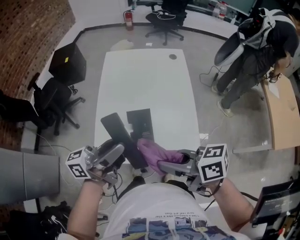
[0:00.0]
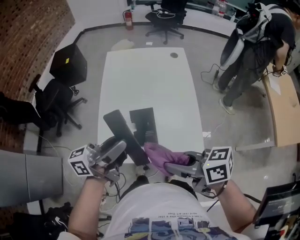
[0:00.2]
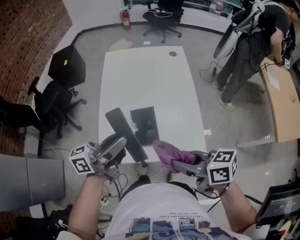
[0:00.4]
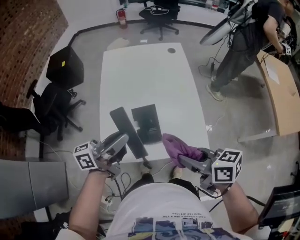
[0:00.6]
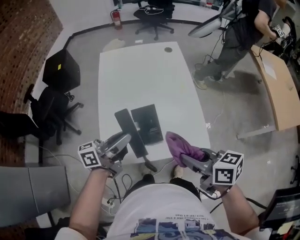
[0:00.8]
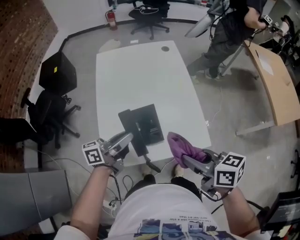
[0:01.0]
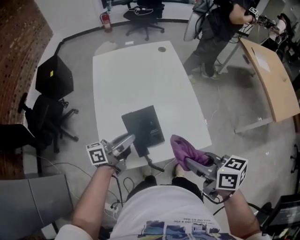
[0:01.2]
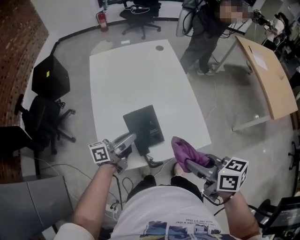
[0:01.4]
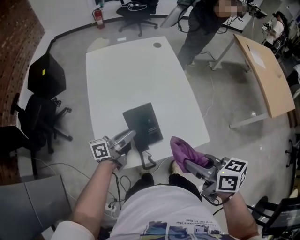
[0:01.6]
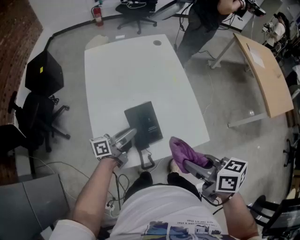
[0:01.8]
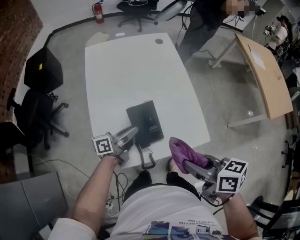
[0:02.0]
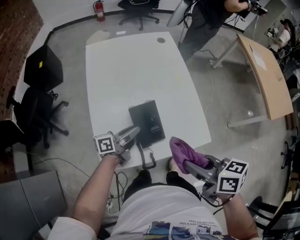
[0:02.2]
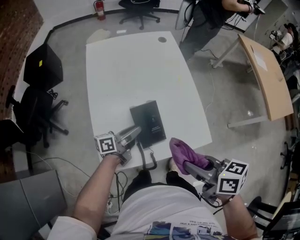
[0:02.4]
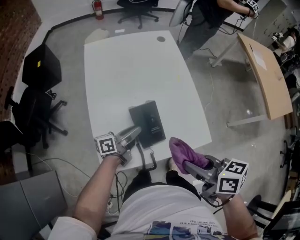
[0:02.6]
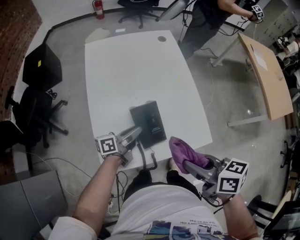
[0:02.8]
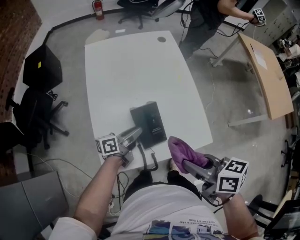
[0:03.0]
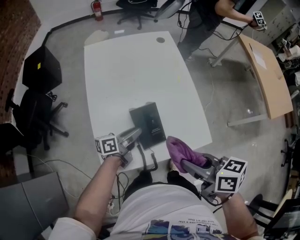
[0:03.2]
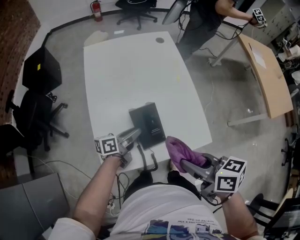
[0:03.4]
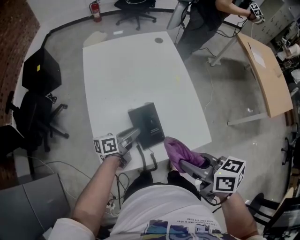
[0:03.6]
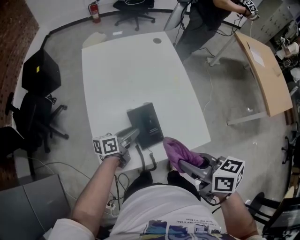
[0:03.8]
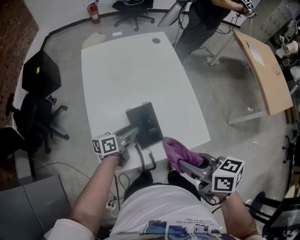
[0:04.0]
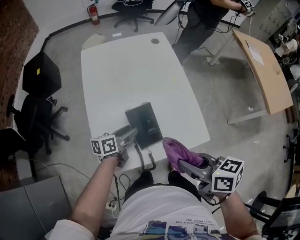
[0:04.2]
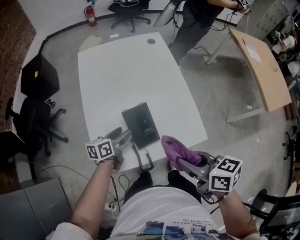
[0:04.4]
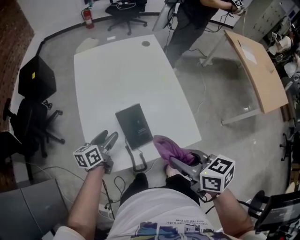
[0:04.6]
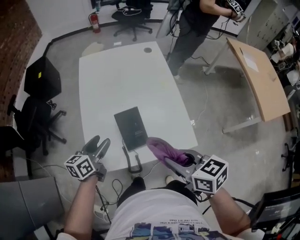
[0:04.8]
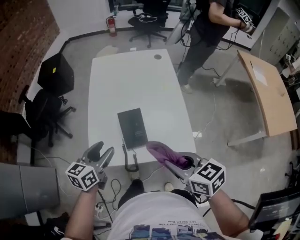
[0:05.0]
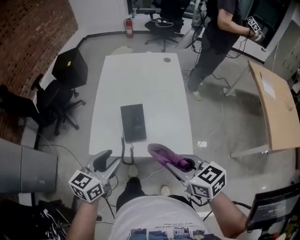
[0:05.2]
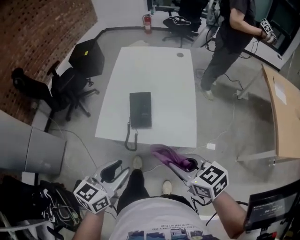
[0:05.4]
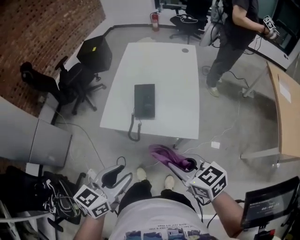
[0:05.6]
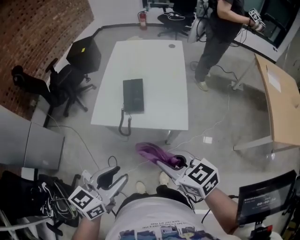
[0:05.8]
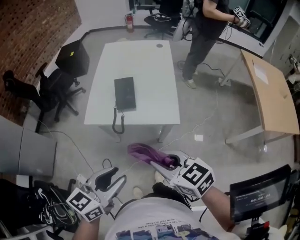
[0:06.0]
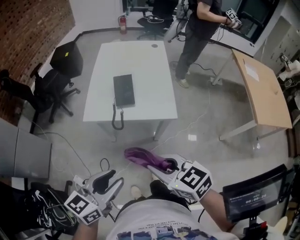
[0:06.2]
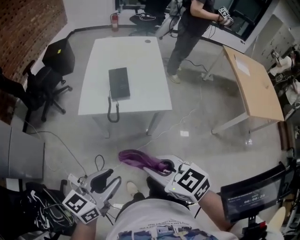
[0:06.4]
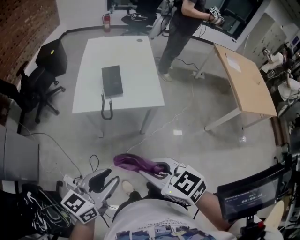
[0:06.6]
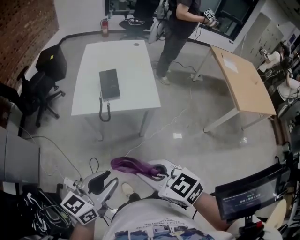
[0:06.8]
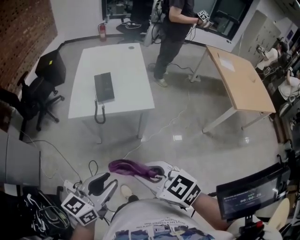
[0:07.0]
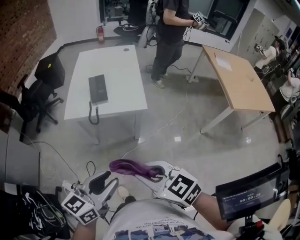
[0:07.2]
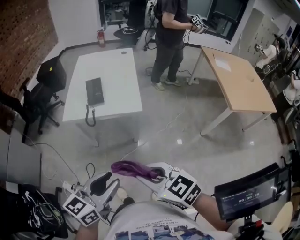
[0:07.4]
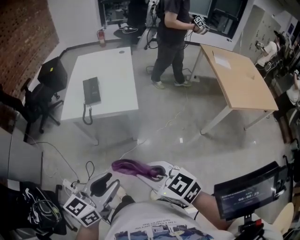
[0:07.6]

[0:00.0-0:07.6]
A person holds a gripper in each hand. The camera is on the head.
0:00.0 to 0:01.6: The left gripper shifts about 20 cm downward, and rotates about 30 degrees. Meanwhile the right gripper ends up some 5 cm from where it was, and swivels about 40 degrees.
0:01.6 to 0:03.0: The left gripper travels downward by some 5 cm.
0:03.0 to 0:04.6: The left gripper travels to the left by some 5 cm, rotates about 30 degrees, and opens up.
0:04.6 to 0:06.0: The left gripper is displaced backward and upward by roughly 50 cm, swivels approximately 20 degrees, and closes, while the right gripper is displaced backward by approximately 20 cm, and swivels approximately 40 degrees.
0:06.0 to 0:07.6: The two grippers go roughly 20 cm backward and to the right.

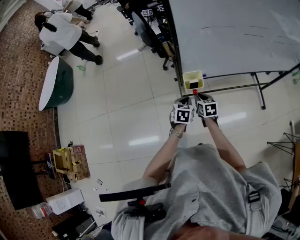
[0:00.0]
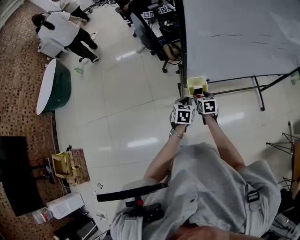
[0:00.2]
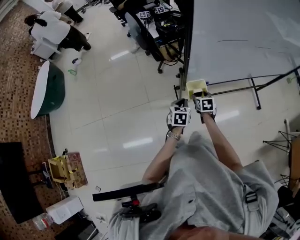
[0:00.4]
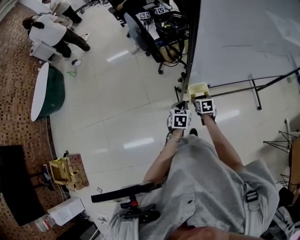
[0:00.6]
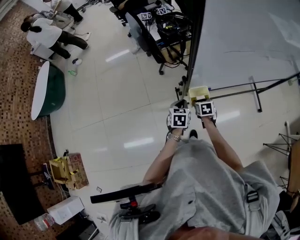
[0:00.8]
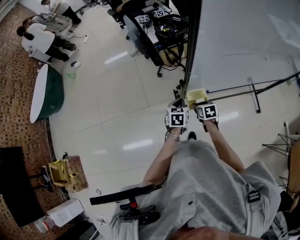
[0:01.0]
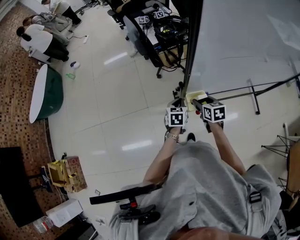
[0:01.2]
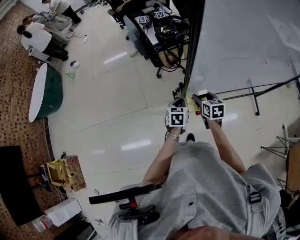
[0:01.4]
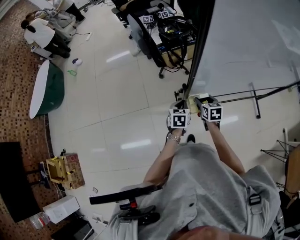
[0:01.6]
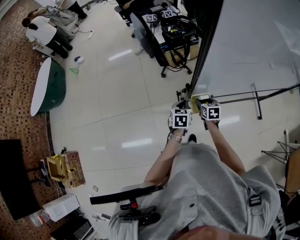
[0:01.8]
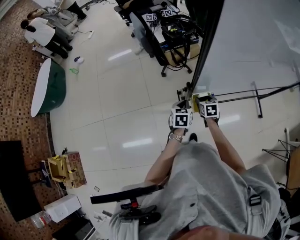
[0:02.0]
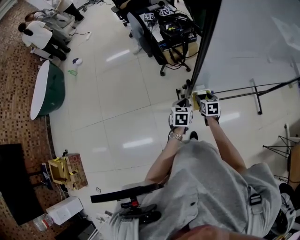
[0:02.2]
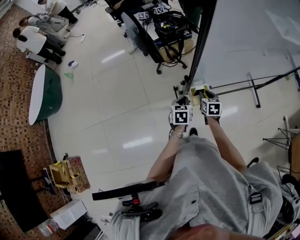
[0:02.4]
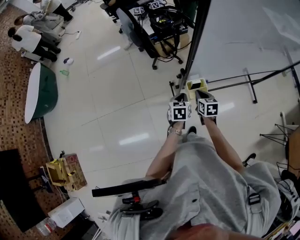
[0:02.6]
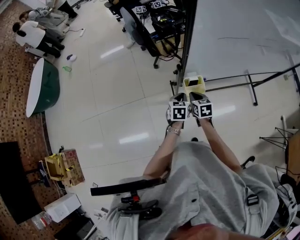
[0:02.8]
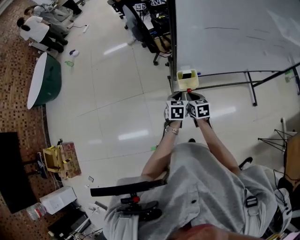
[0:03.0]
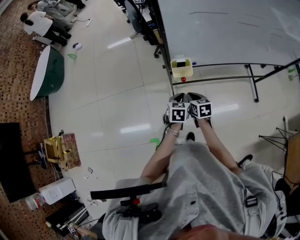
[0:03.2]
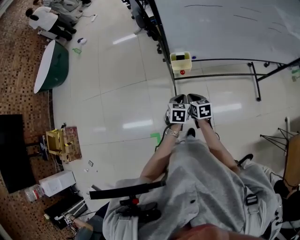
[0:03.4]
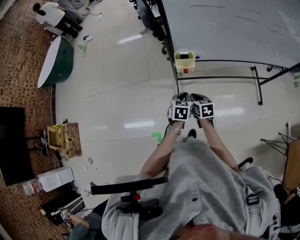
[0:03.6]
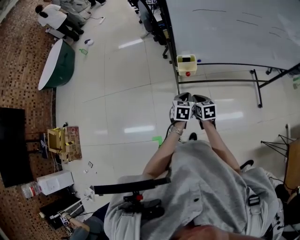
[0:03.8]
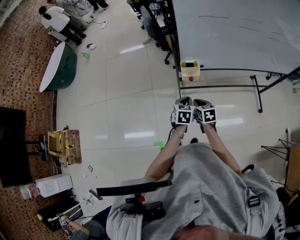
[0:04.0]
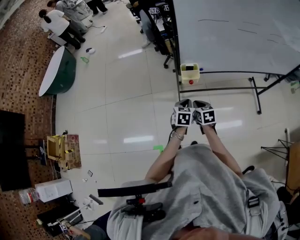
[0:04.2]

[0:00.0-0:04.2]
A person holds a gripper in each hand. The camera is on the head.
0:00.0 to 0:01.4: The right gripper goes some 15 cm forward and upward, and opens. Meanwhile the left gripper moves forward and to the left, approximately 15 cm.
0:01.4 to 0:02.8: The left gripper goes some 5 cm backward; the right gripper is displaced backward and downward by approximately 10 cm, and closes.
0:02.8 to 0:04.2: Both grippers travel together backward, about 20 cm.

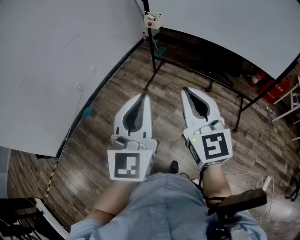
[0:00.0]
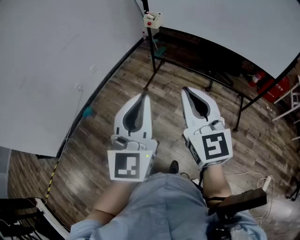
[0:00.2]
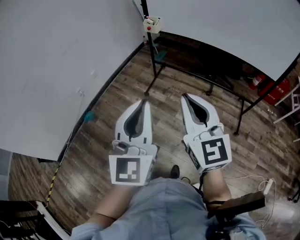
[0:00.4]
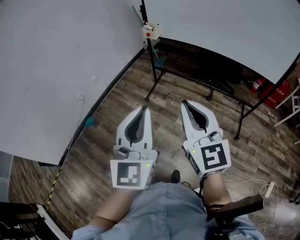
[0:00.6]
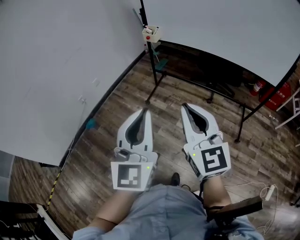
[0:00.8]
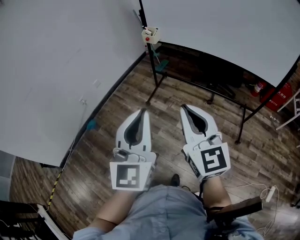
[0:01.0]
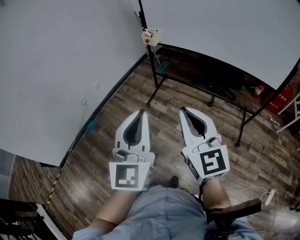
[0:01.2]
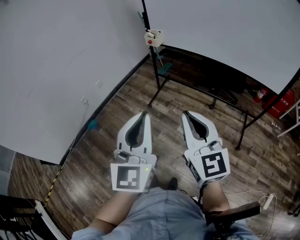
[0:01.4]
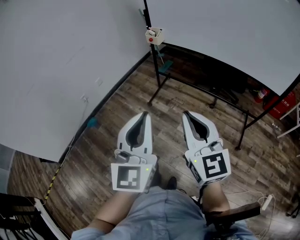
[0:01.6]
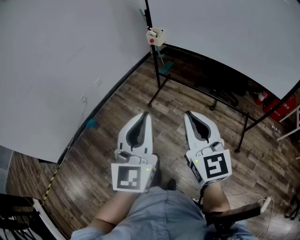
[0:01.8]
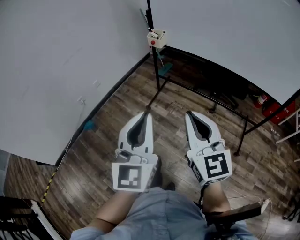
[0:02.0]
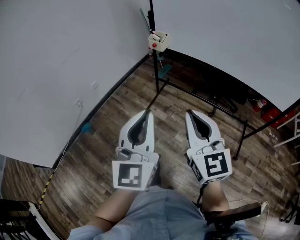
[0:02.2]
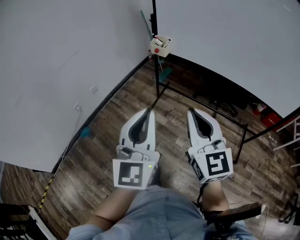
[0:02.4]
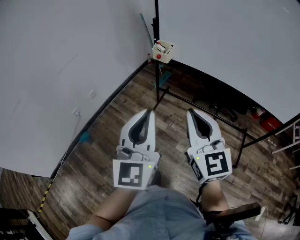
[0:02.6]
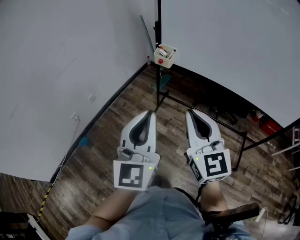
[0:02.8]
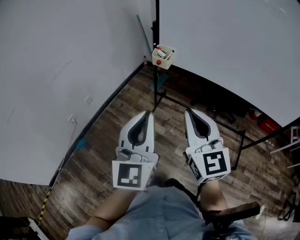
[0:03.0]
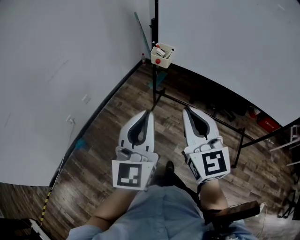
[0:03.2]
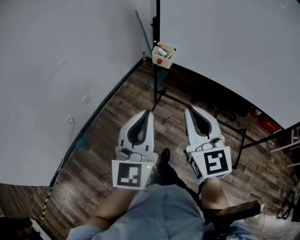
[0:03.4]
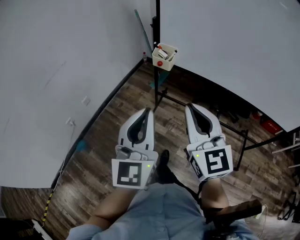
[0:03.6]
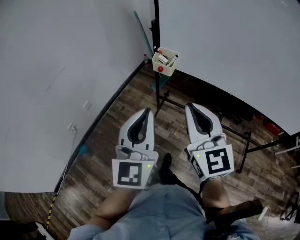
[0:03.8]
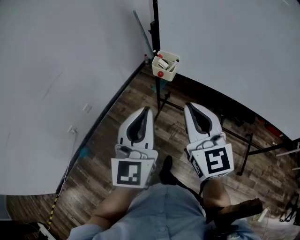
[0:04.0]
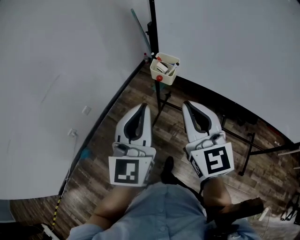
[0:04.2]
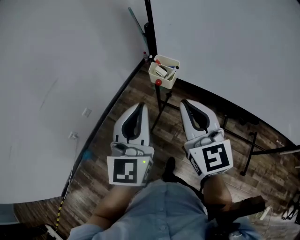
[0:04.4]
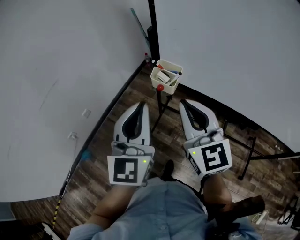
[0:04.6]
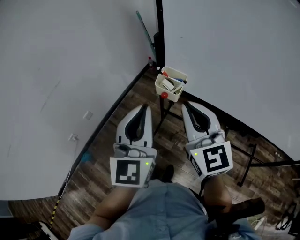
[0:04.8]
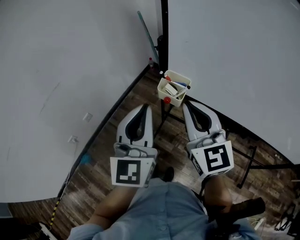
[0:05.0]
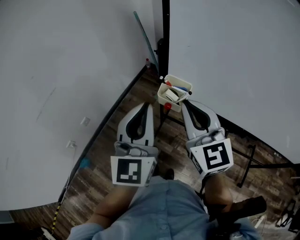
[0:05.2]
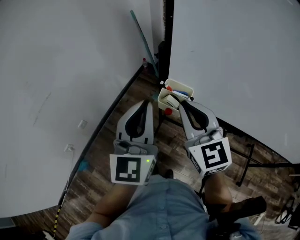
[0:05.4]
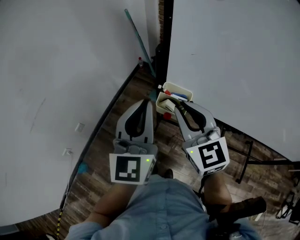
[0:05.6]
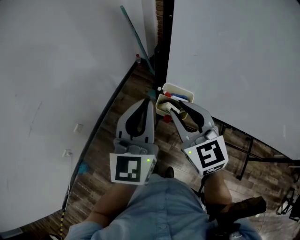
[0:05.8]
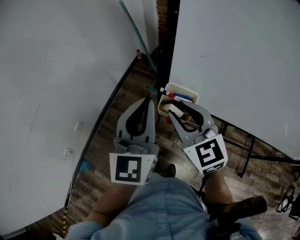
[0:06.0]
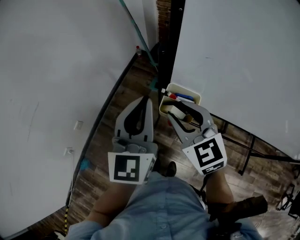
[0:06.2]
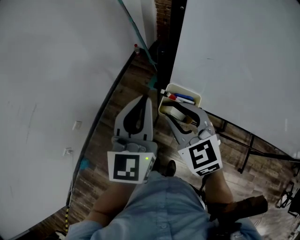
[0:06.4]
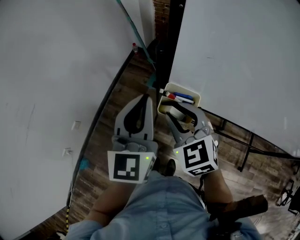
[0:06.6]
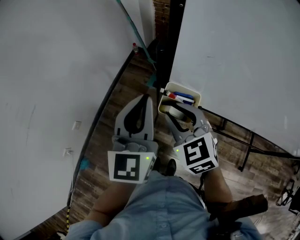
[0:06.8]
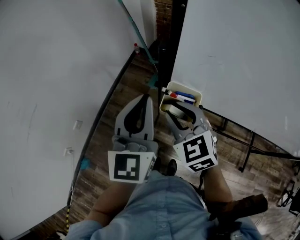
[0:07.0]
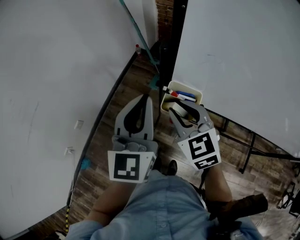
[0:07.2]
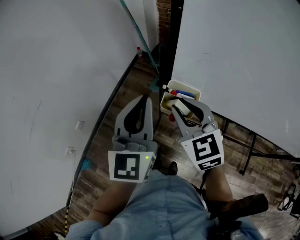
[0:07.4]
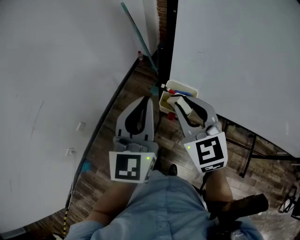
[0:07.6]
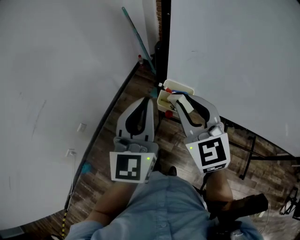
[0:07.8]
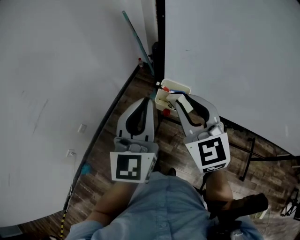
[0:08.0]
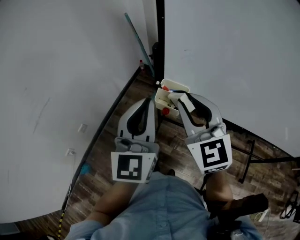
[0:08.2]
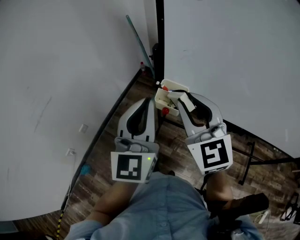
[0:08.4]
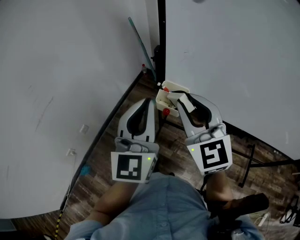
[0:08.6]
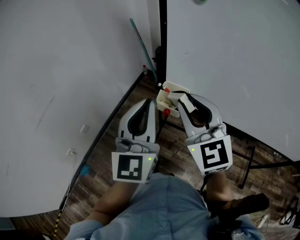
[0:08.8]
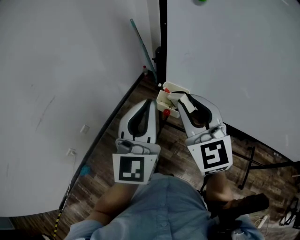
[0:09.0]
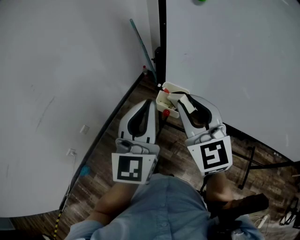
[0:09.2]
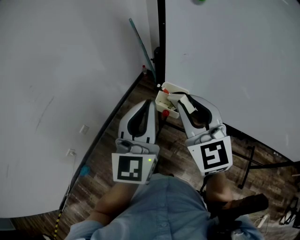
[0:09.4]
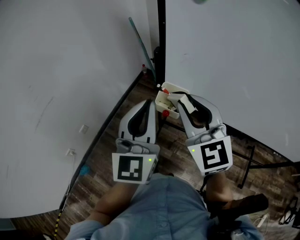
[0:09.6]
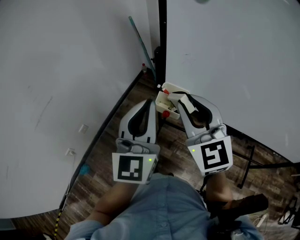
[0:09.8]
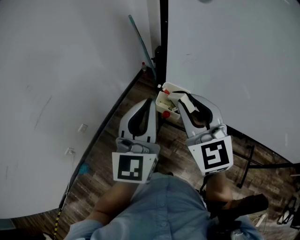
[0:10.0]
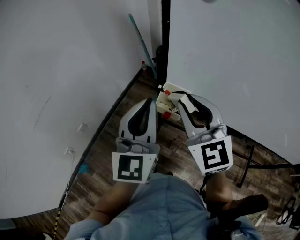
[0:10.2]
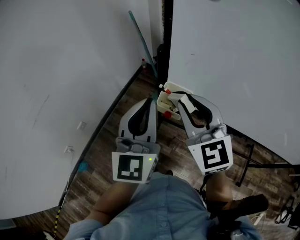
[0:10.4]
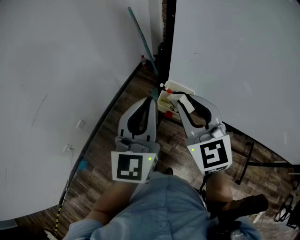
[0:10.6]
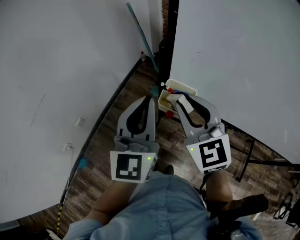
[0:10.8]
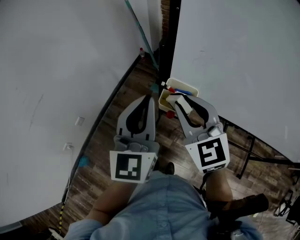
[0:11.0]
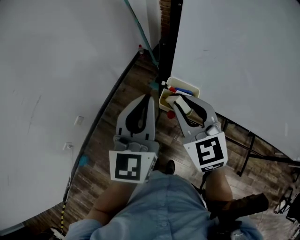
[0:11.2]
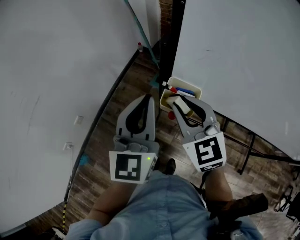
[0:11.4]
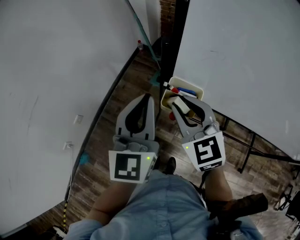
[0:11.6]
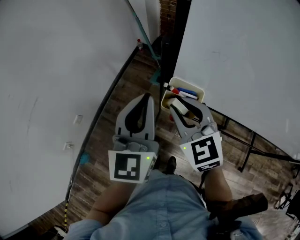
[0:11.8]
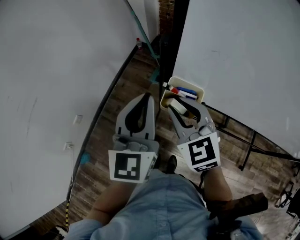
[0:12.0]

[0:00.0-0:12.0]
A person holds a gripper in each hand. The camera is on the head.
0:00.0 to 0:01.6: Both grippers move to the right, about 5 cm.
0:01.6 to 0:03.0: The two grippers go roughly 25 cm forward.
0:03.0 to 0:04.4: Both grippers travel together forward, approximately 25 cm.
0:04.4 to 0:06.0: The two grippers go roughly 20 cm forward. The right gripper opens its fingers.
0:06.0 to 0:07.6: The grippers move only a little.
0:07.6 to 0:09.0: The right gripper travels upward and backward by some 10 cm. Meanwhile the left gripper is displaced backward by approximately 10 cm.
0:09.0 to 0:10.4: The grippers make only small movements.
0:10.4 to 0:12.0: The left gripper travels forward and downward by some 10 cm, while the right gripper shifts about 15 cm downward and forward.
